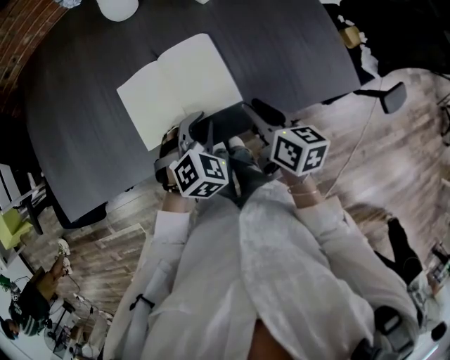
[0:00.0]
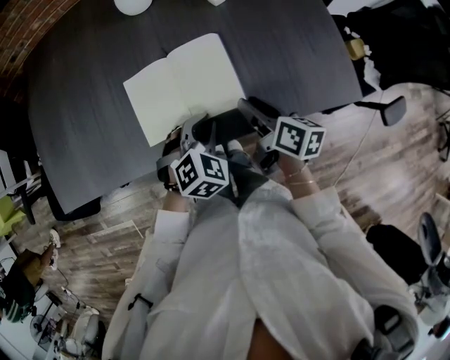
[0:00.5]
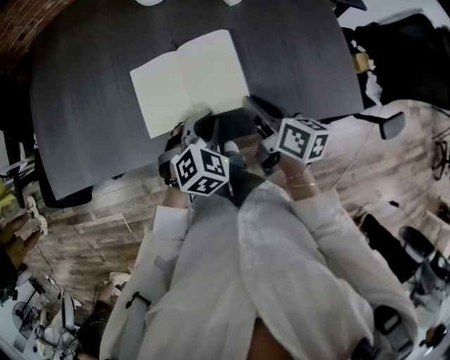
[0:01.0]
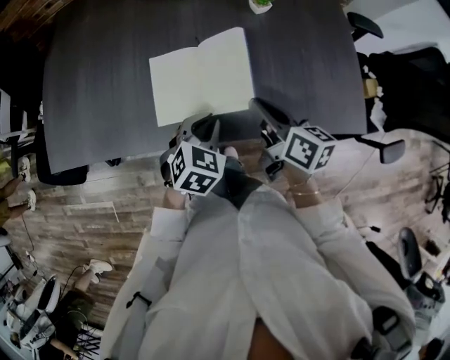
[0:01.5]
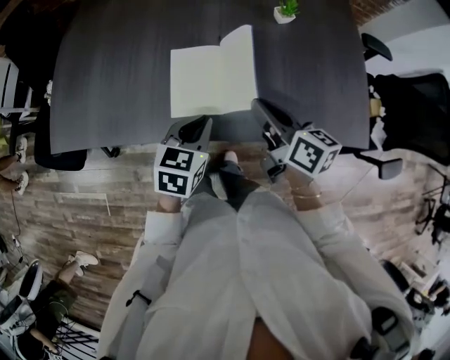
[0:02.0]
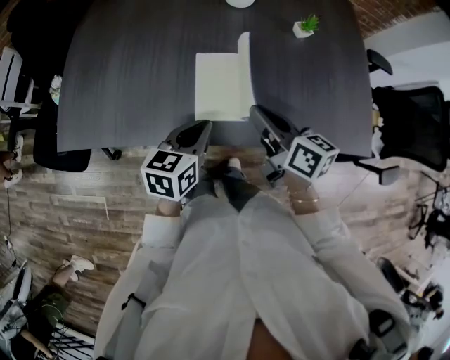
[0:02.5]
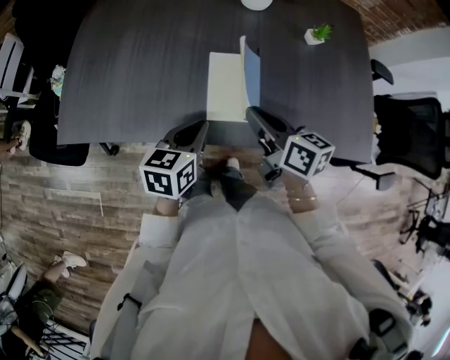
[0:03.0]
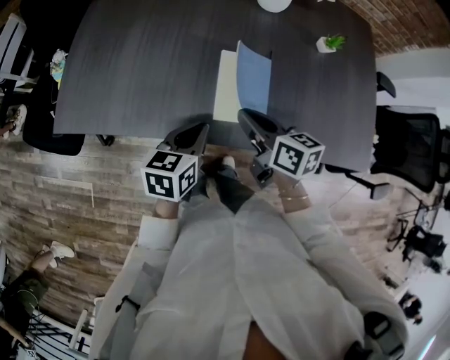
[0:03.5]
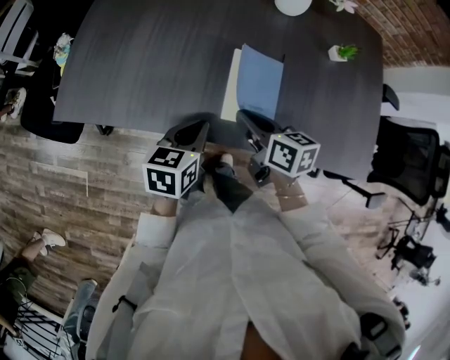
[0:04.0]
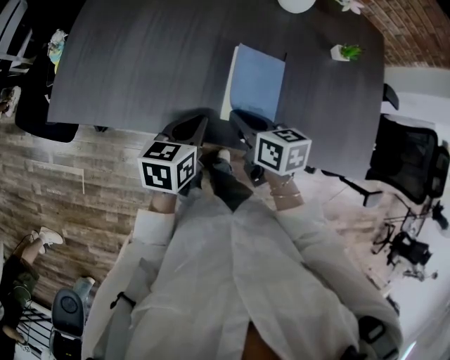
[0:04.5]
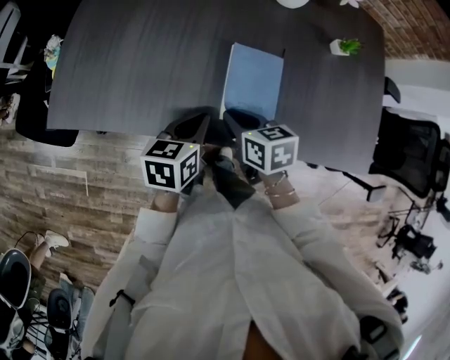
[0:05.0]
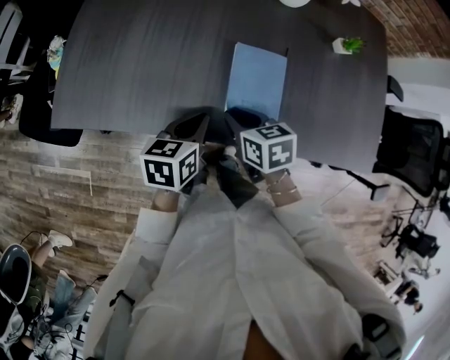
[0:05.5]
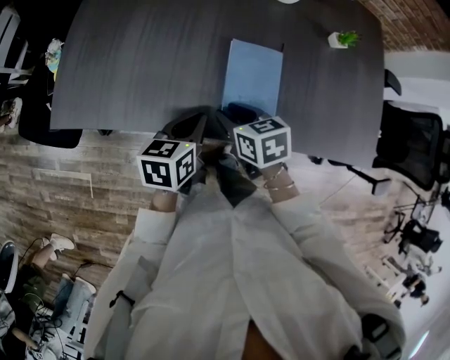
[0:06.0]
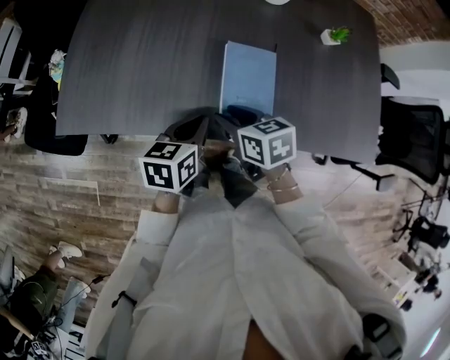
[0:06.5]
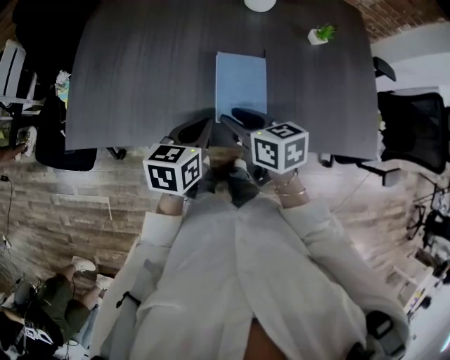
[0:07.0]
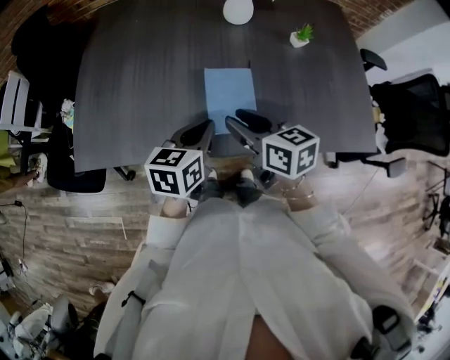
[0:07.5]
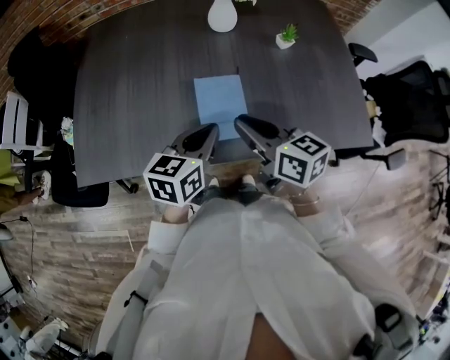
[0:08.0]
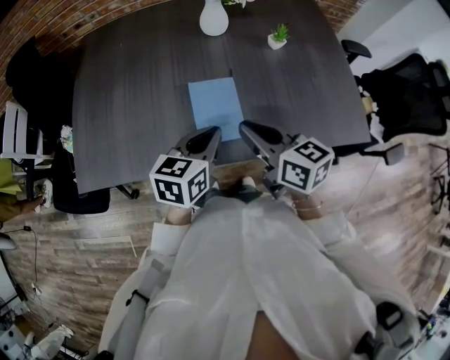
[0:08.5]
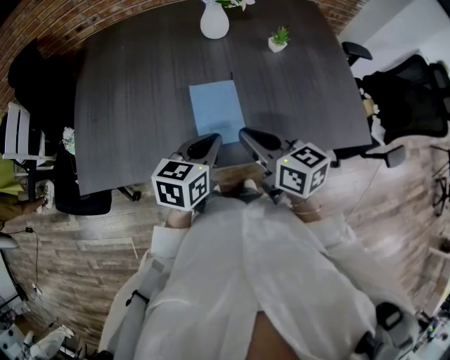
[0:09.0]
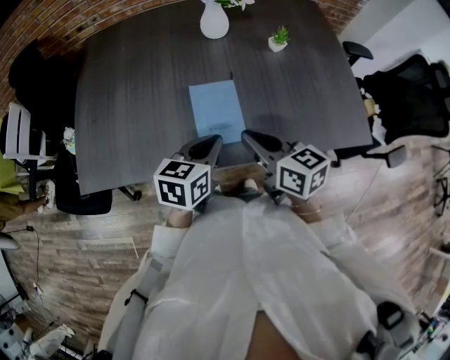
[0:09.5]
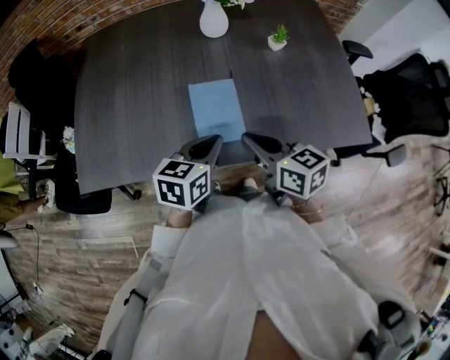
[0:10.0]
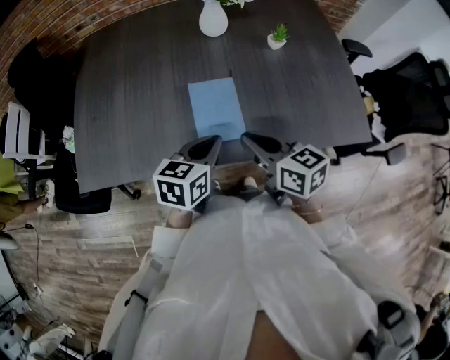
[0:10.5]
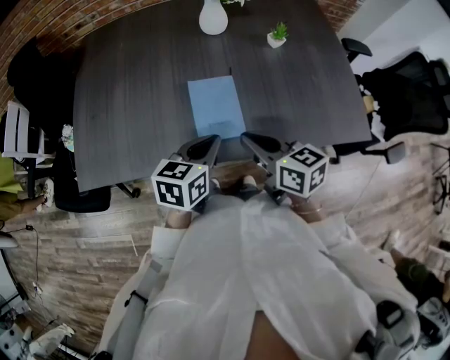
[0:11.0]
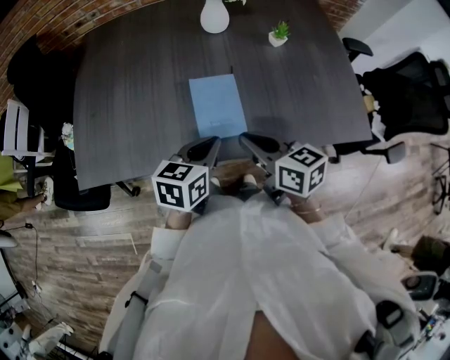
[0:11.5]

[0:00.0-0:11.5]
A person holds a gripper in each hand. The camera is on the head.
0.0 to 2.0 s: The right gripper travels to the left and upward by about 10 cm, and changes its angle by approximately 20 degrees, while the left gripper heads to the left, covering about 10 cm, and rolls counterclockwise, seen from behind, by some 50 degrees.
2.0 to 4.0 s: The right gripper is displaced to the left and downward by about 20 cm. Meanwhile the left gripper shifts approximately 15 cm to the left, and turns by roughly 20 degrees.
4.0 to 6.0 s: The right gripper changes place by about 5 cm, rotates some 20 degrees, and opens its fingers.
6.0 to 7.5 s: Both grippers move upward and to the right, approximately 15 cm. The right gripper swivels about 30 degrees.
7.5 to 9.5 s: The two grippers go approximately 5 cm to the right. The right gripper closes its fingers.
9.5 to 11.5 s: The grippers move only a little.

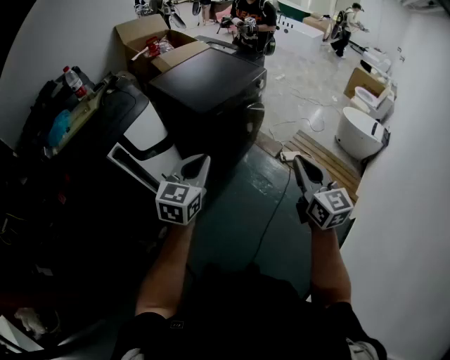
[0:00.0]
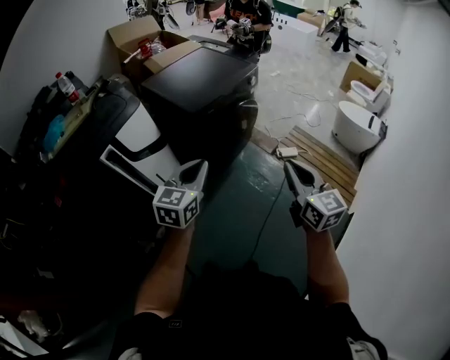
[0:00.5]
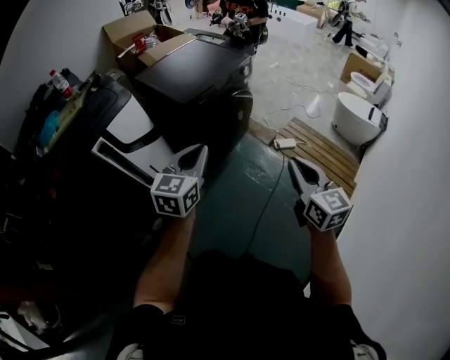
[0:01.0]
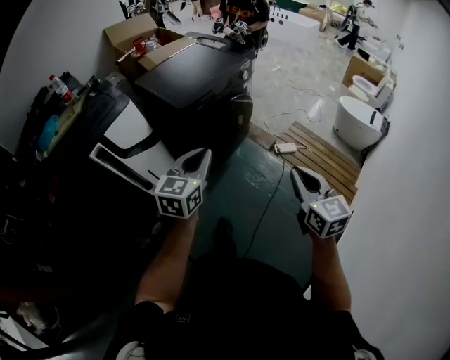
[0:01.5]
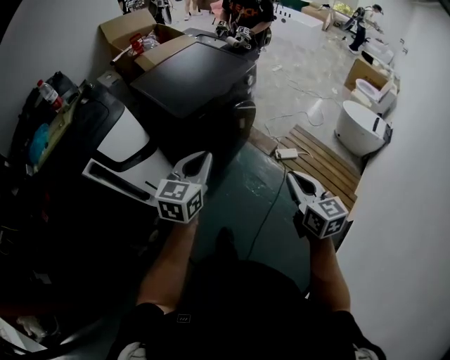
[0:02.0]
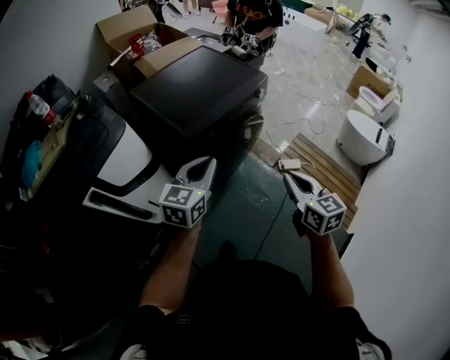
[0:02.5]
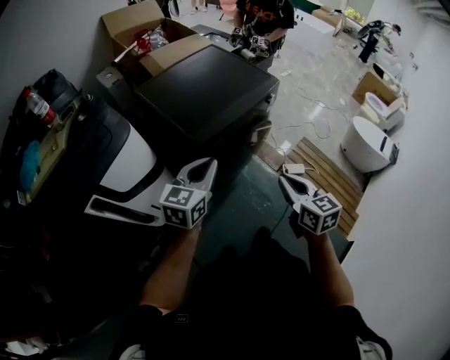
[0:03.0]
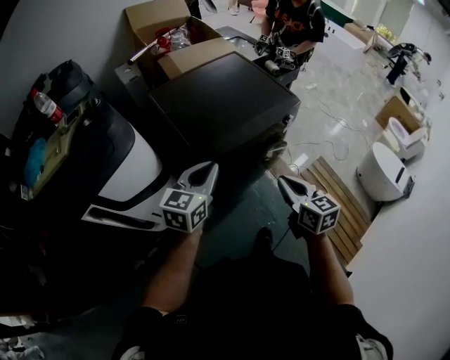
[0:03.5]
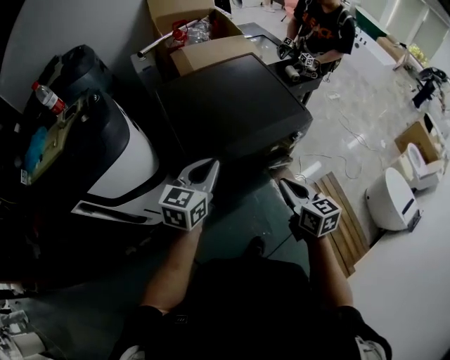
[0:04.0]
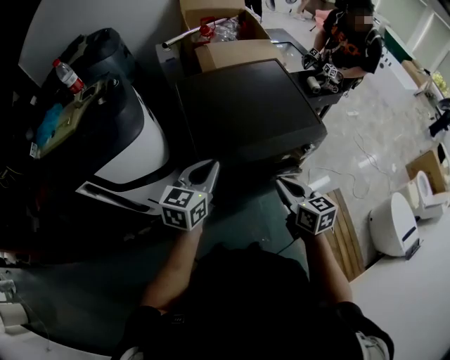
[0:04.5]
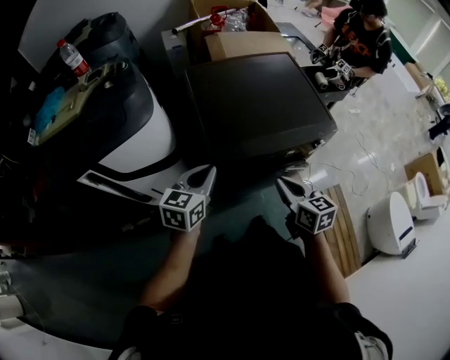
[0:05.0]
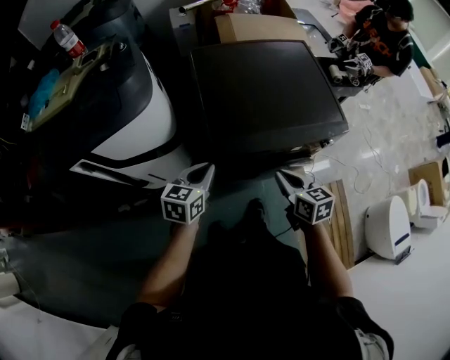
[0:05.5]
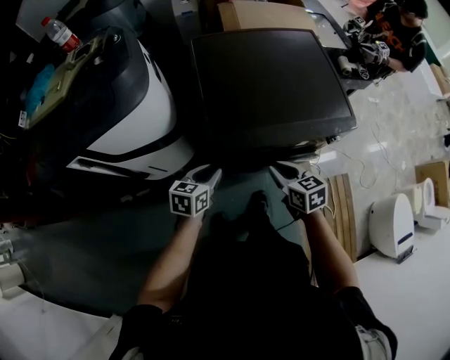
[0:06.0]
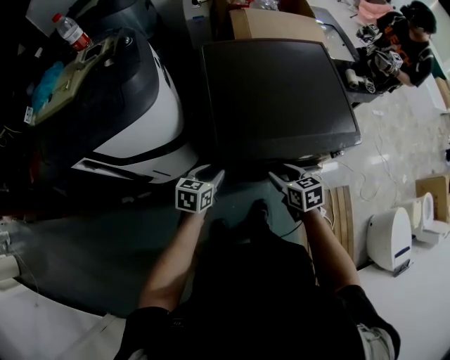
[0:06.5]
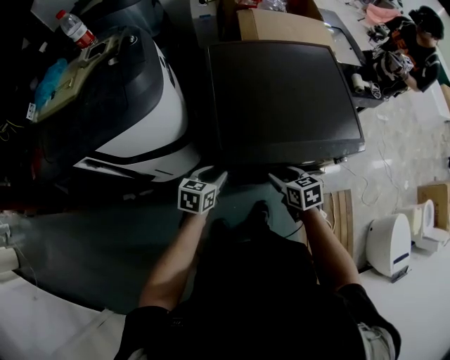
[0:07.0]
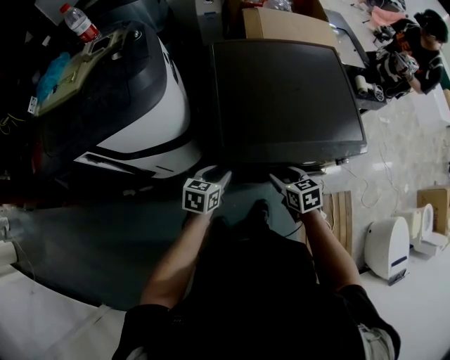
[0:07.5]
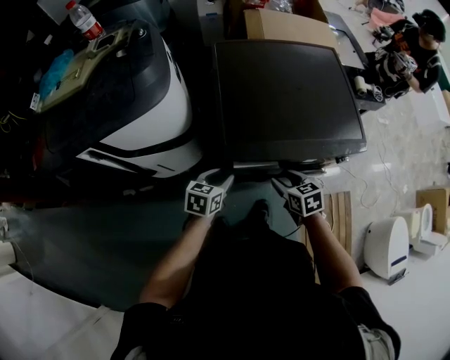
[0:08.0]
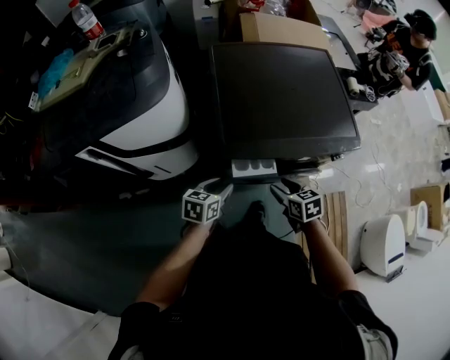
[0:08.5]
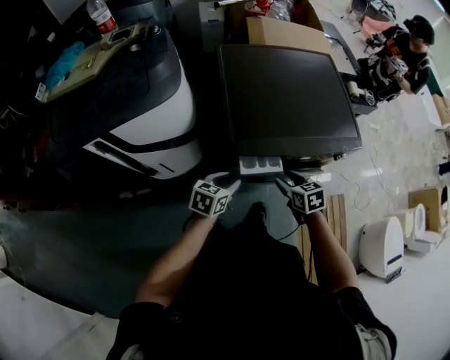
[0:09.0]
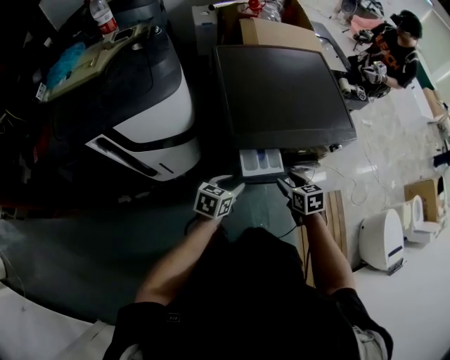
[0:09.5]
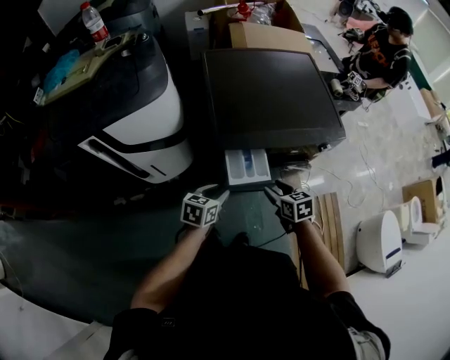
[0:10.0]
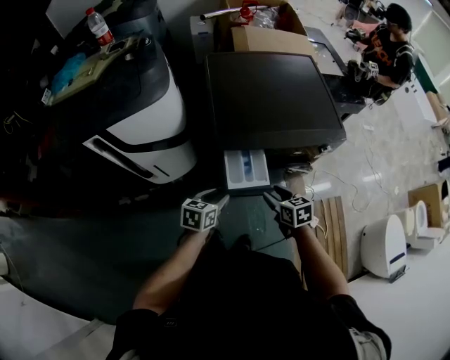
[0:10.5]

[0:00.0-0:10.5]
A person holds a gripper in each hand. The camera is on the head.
0.0 to 2.0 s: The right gripper travels downward, to the right and forward by some 15 cm; the left gripper goes roughly 15 cm forward and to the right.
2.0 to 4.0 s: Both grippers move forward, some 40 cm. The right gripper rotates approximately 30 degrees.
4.0 to 6.5 s: The right gripper moves downward, forward and to the left, roughly 20 cm, changes its angle by approximately 30 degrees, and opens its fingers. The left gripper travels downward and to the left by about 25 cm, changes its angle by some 30 degrees, and opens up.
6.5 to 8.5 s: The right gripper changes place by approximately 5 cm; the left gripper moves backward, about 5 cm.
8.5 to 10.5 s: The grippers both shift backward by about 10 cm.

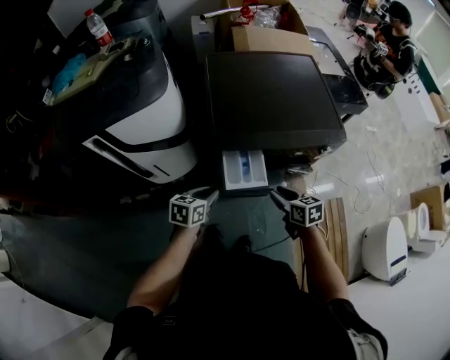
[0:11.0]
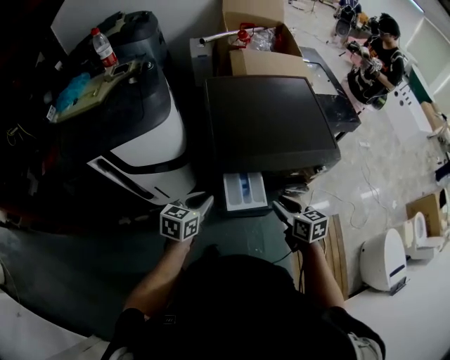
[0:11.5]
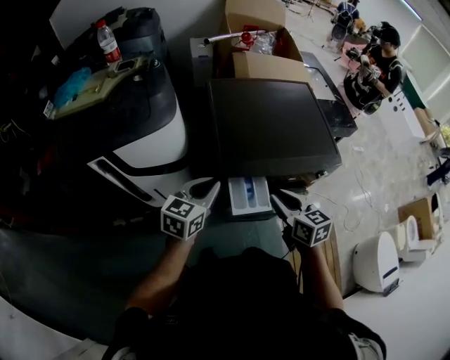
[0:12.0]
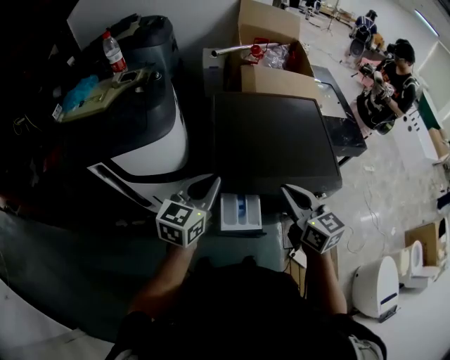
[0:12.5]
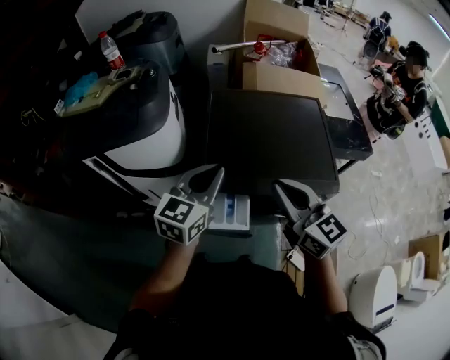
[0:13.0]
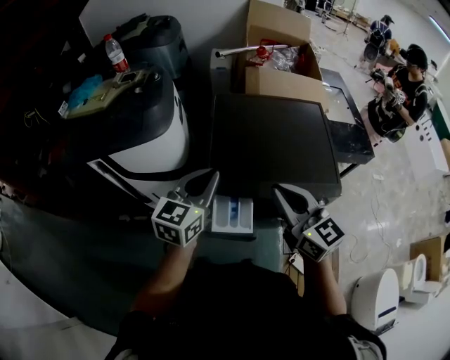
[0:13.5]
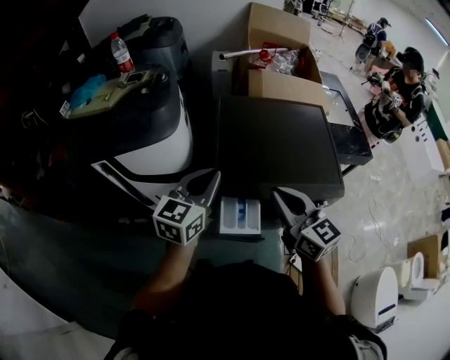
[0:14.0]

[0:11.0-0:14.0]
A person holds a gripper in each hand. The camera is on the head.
11.0 to 12.5 s: The grippers both shift upward and forward by approximately 25 cm. The left gripper changes its angle by about 30 degrees, while the right gripper rotates approximately 30 degrees, and closes its fingers.

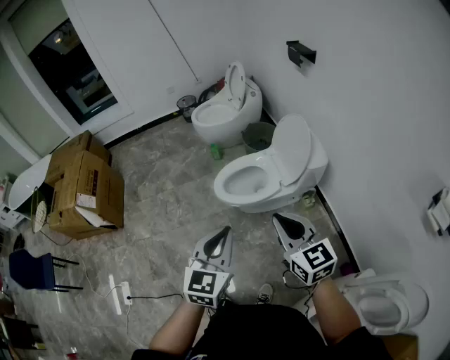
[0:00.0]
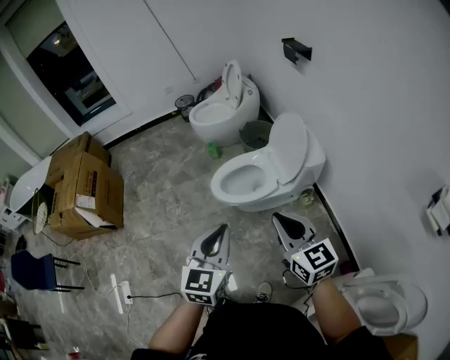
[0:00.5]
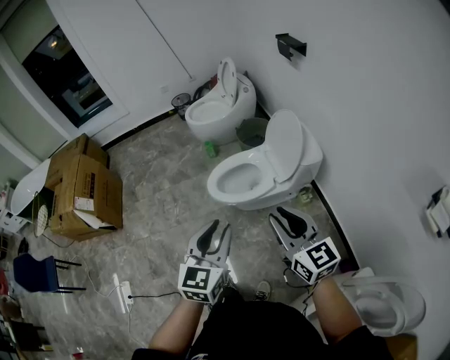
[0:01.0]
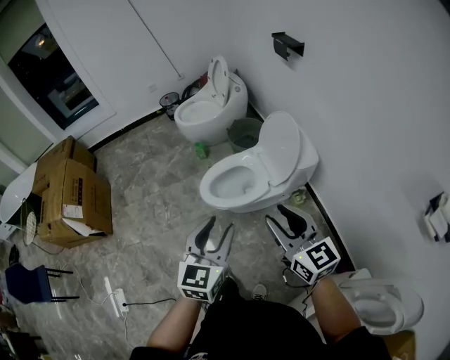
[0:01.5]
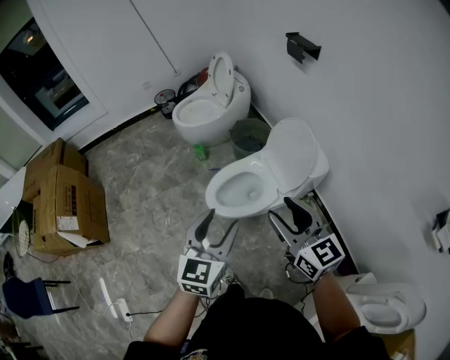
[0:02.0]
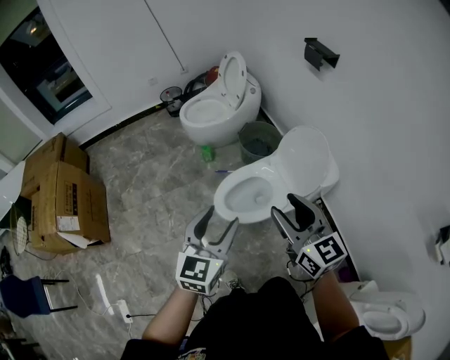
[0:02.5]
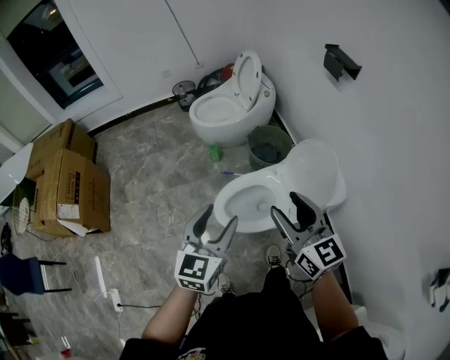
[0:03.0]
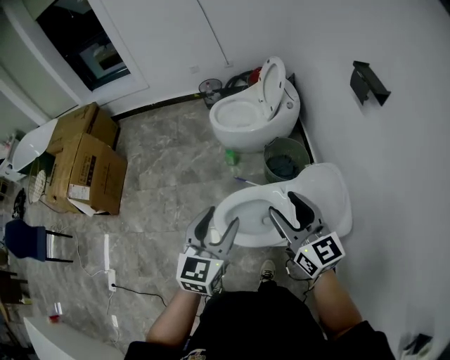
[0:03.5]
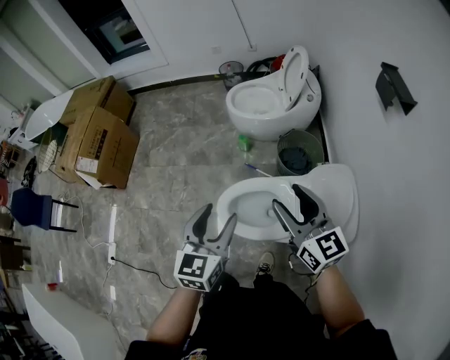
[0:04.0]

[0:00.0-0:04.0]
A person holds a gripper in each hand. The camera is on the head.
0.0 to 2.0 s: Both grippers move forward, about 20 cm. The right gripper opens up; the left gripper opens up.
2.0 to 4.0 s: The left gripper shifts by some 20 cm, and changes its angle by approximately 30 degrees. The right gripper changes place by roughly 30 cm, and swivels some 30 degrees.
